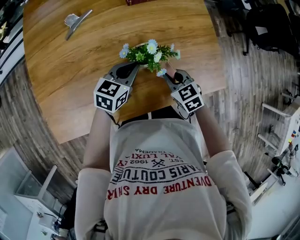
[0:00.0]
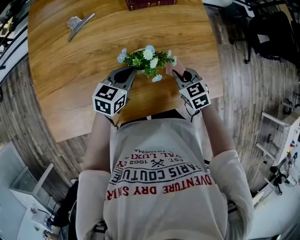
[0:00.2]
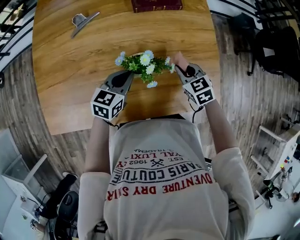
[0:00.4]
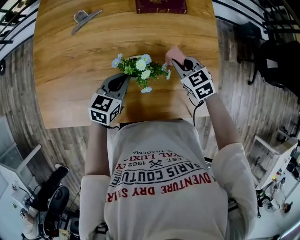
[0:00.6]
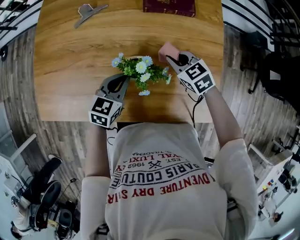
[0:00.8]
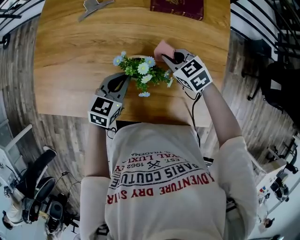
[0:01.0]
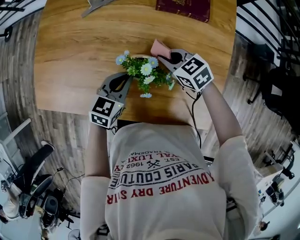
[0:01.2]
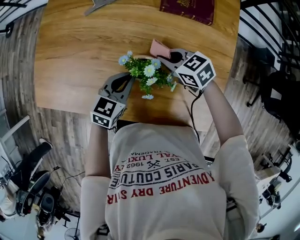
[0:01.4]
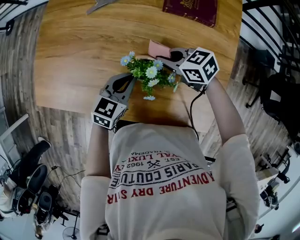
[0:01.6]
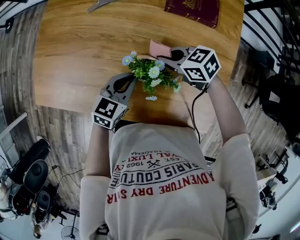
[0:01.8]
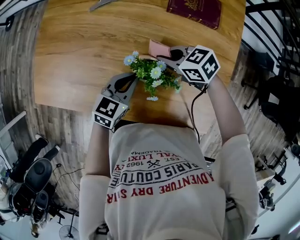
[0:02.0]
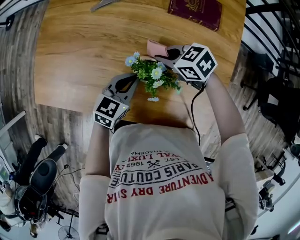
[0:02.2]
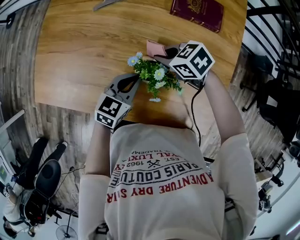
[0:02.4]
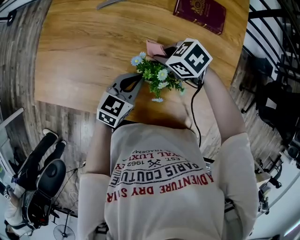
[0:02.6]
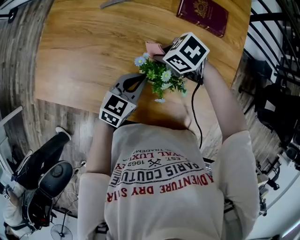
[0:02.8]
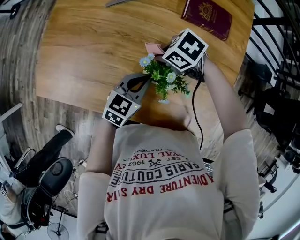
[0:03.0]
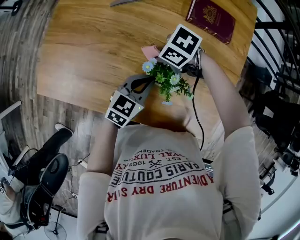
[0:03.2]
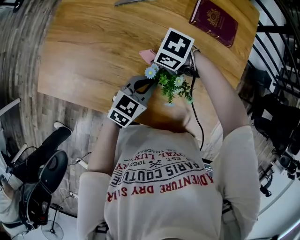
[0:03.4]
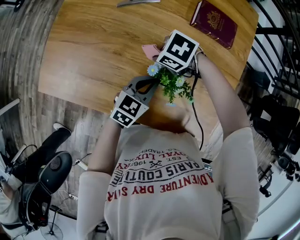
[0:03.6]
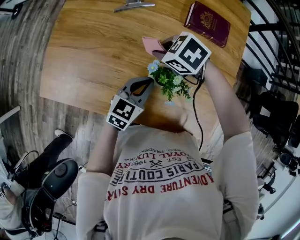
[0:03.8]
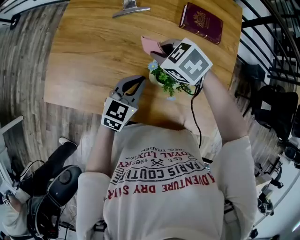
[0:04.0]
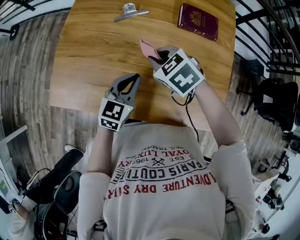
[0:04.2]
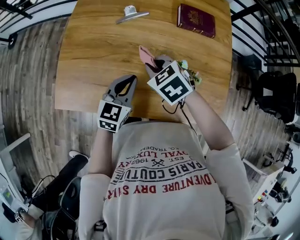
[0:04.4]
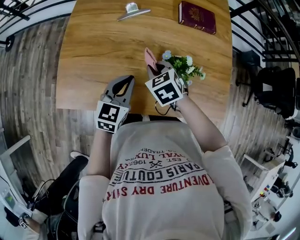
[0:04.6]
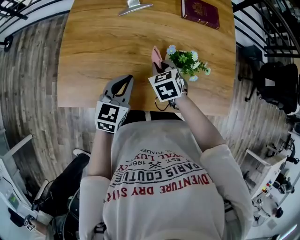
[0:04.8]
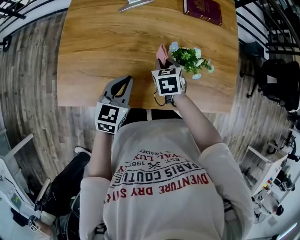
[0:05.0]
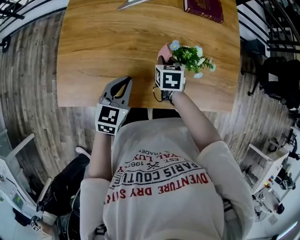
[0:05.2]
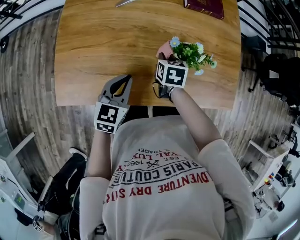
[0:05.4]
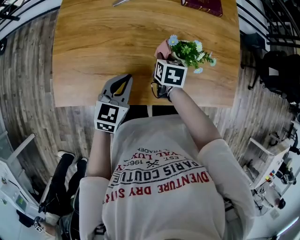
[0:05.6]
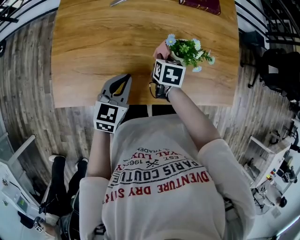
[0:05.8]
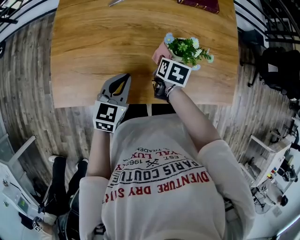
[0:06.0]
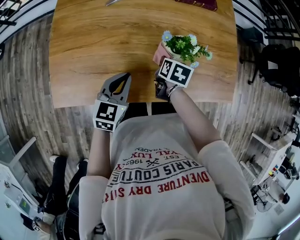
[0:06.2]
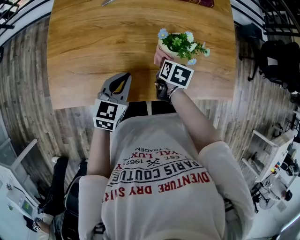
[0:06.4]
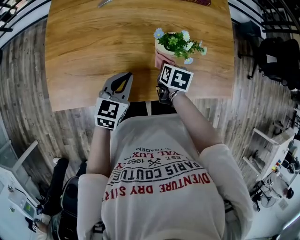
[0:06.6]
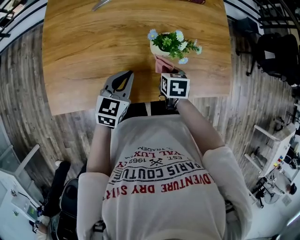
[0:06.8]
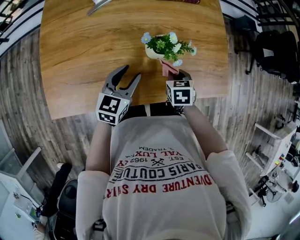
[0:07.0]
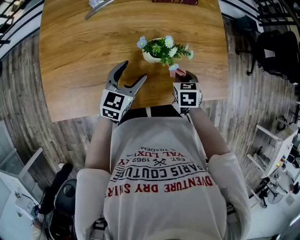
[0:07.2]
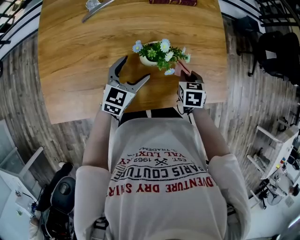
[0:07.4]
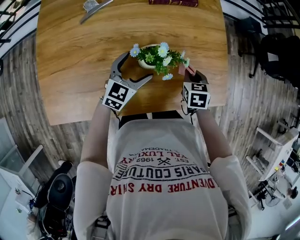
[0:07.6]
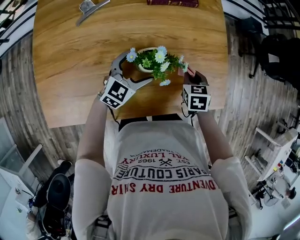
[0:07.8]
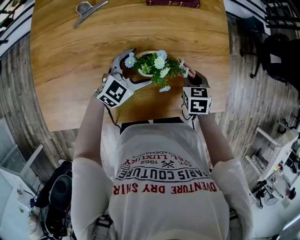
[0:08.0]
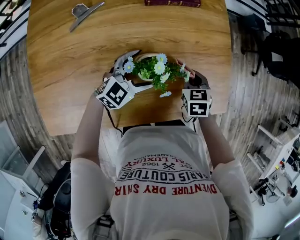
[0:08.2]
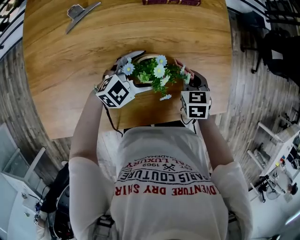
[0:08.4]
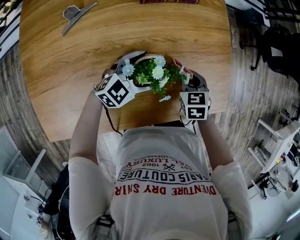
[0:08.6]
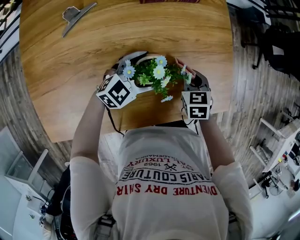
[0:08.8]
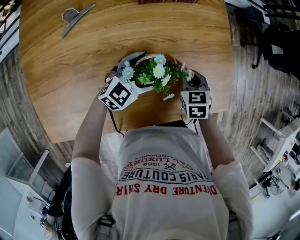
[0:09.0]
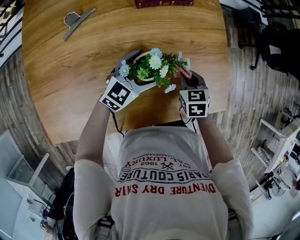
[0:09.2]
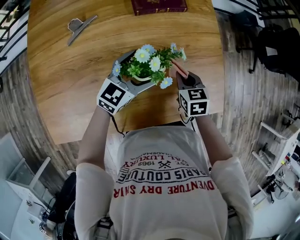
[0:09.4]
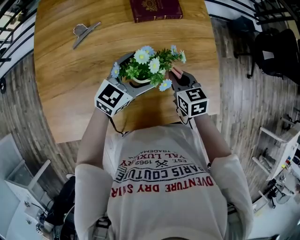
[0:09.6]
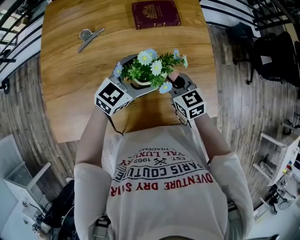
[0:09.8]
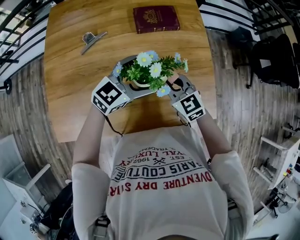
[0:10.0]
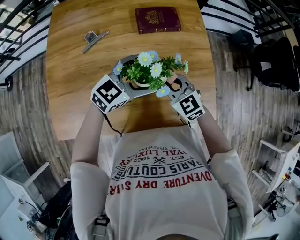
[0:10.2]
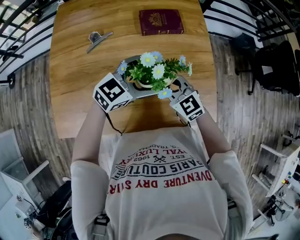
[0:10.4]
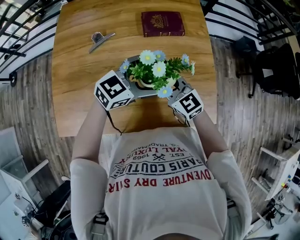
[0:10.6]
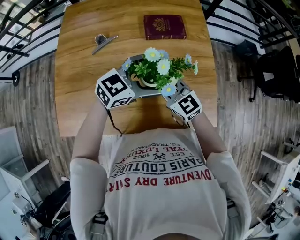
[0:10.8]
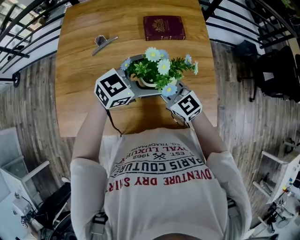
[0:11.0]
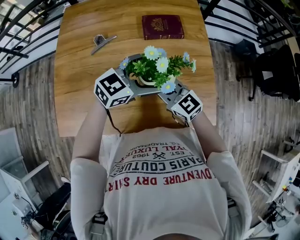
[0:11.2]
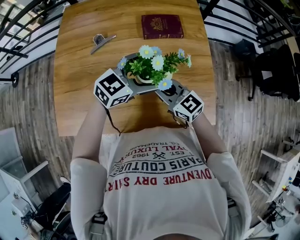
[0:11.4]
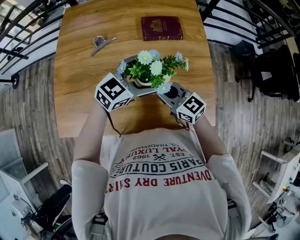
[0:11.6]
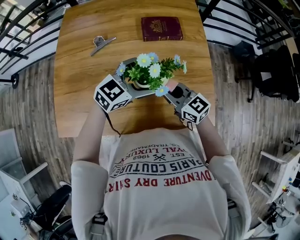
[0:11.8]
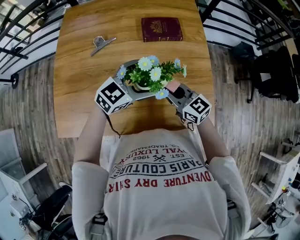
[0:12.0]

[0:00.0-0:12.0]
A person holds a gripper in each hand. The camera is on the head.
0:00.0 to 0:01.6: The right gripper shifts by about 15 cm, and rotates about 50 degrees; the left gripper rotates some 30 degrees.
0:01.6 to 0:03.0: The right gripper ends up roughly 5 cm from where it was, and turns by approximately 30 degrees.
0:03.0 to 0:04.4: The right gripper changes place by approximately 15 cm, and swivels approximately 40 degrees, while the left gripper moves some 15 cm.
0:04.4 to 0:06.0: The right gripper goes approximately 15 cm downward and to the right, and rolls clockwise, seen from behind, by approximately 60 degrees. The left gripper goes approximately 10 cm backward and downward.
0:06.0 to 0:07.6: The left gripper heads forward and to the right, covering approximately 20 cm, and opens its fingers, while the right gripper heads to the right, covering about 20 cm, and swivels about 30 degrees.
0:07.6 to 0:09.0: The left gripper goes about 5 cm forward, and swivels approximately 30 degrees.
0:09.0 to 0:10.4: The right gripper heads upward and to the left, covering about 20 cm, and tilts its fingers about 30 degrees upward. The left gripper is displaced upward by approximately 20 cm.
0:10.4 to 0:12.0: The right gripper turns by some 20 degrees.

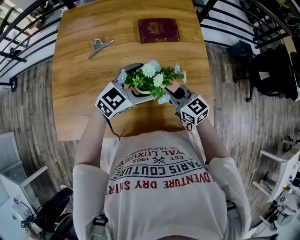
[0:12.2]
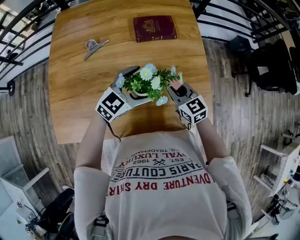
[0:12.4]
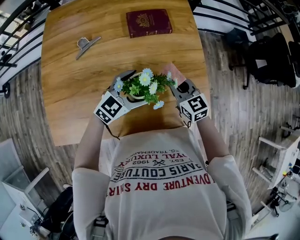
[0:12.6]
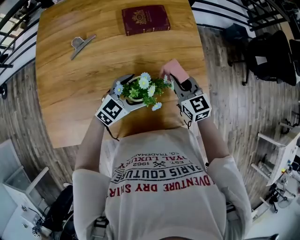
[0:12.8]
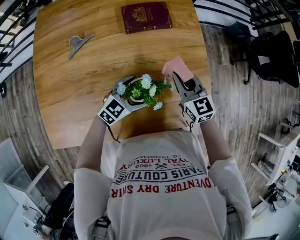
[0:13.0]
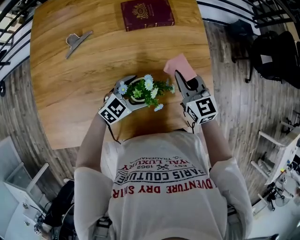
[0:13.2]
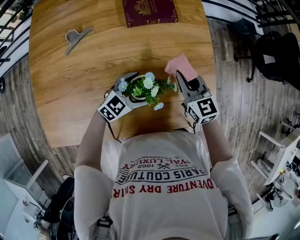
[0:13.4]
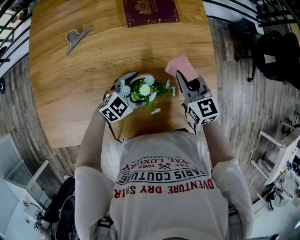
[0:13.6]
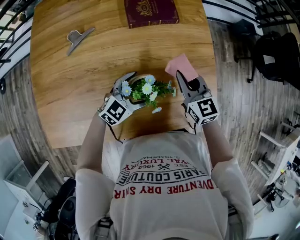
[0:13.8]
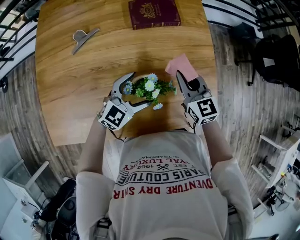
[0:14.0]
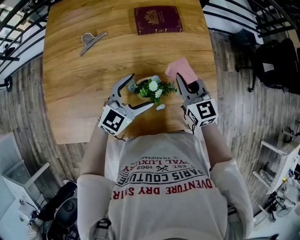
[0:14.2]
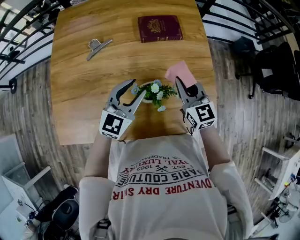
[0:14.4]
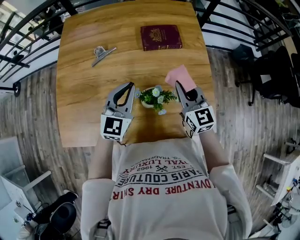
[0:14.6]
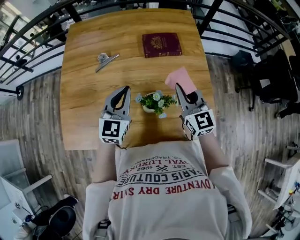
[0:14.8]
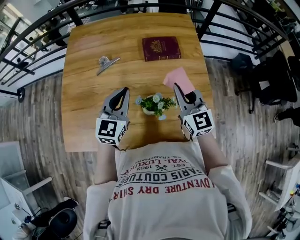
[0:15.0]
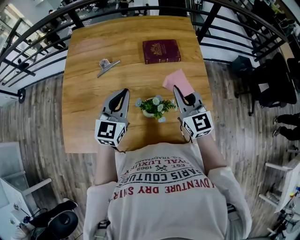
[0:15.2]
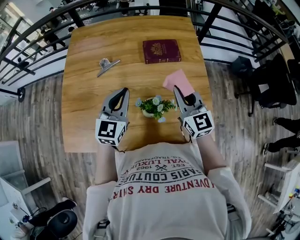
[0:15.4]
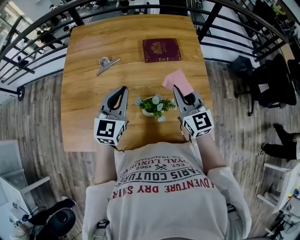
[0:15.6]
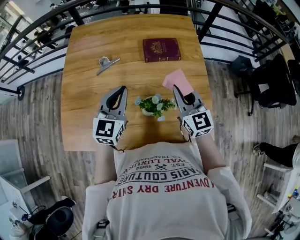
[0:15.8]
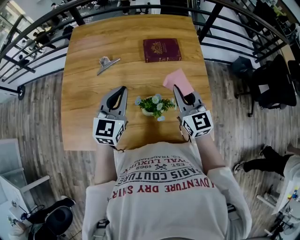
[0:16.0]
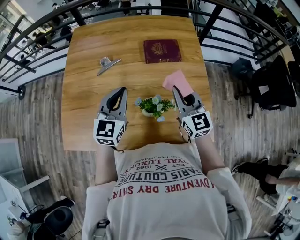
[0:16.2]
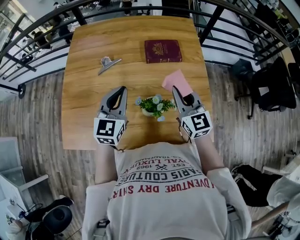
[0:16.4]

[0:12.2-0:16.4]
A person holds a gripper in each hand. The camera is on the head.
0:12.2 to 0:13.6: The left gripper travels downward by approximately 20 cm. Meanwhile the right gripper goes approximately 10 cm forward and to the right, and swivels approximately 20 degrees.
0:13.6 to 0:15.0: The right gripper is displaced upward by about 15 cm; the left gripper heads upward and to the left, covering some 25 cm, swivels about 50 degrees, and closes its fingers.
0:15.0 to 0:16.4: The grippers move only a little.

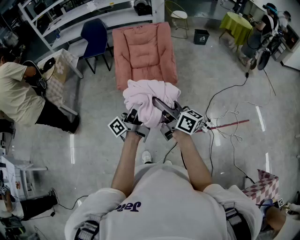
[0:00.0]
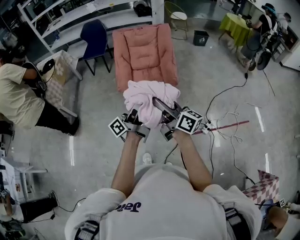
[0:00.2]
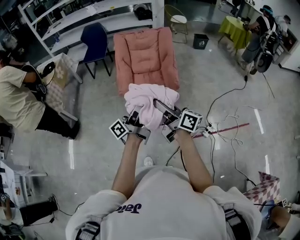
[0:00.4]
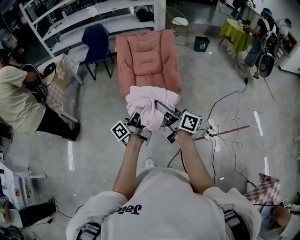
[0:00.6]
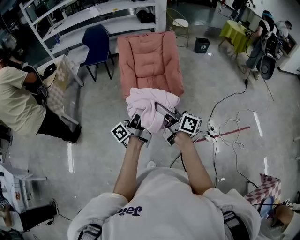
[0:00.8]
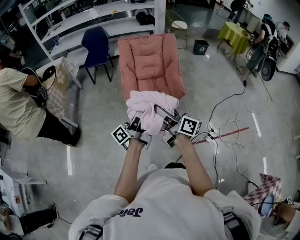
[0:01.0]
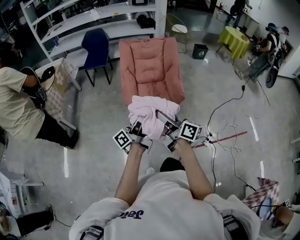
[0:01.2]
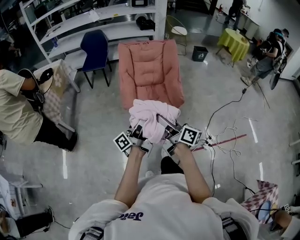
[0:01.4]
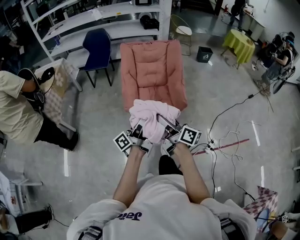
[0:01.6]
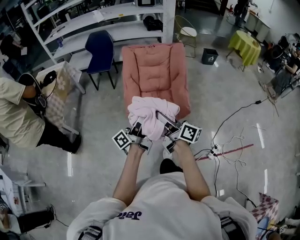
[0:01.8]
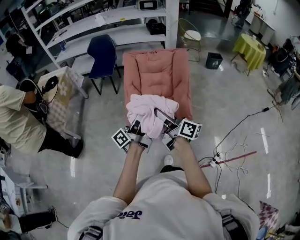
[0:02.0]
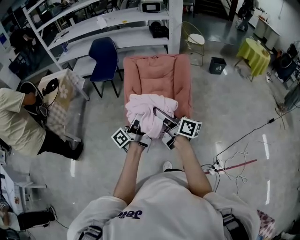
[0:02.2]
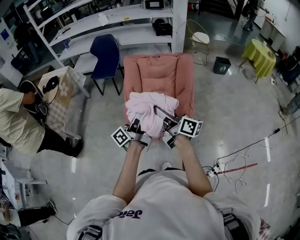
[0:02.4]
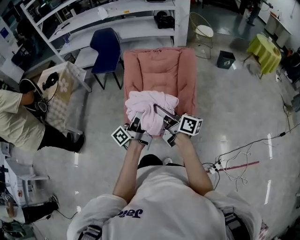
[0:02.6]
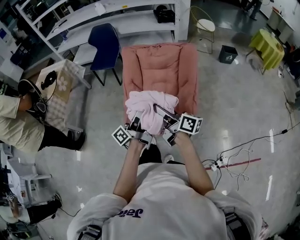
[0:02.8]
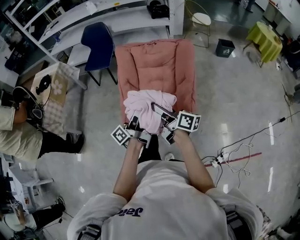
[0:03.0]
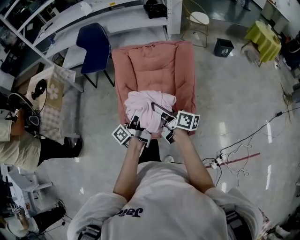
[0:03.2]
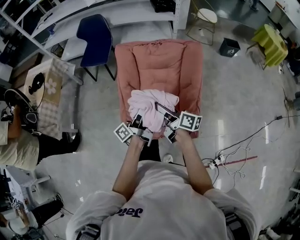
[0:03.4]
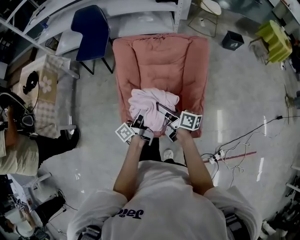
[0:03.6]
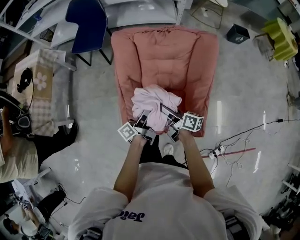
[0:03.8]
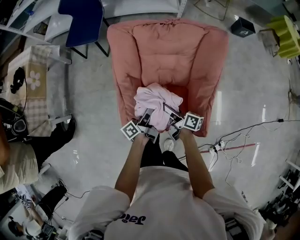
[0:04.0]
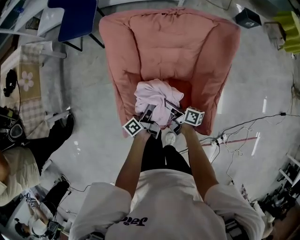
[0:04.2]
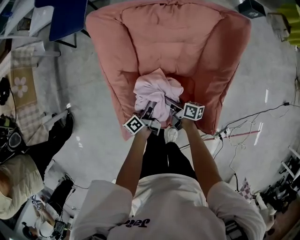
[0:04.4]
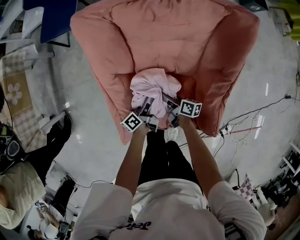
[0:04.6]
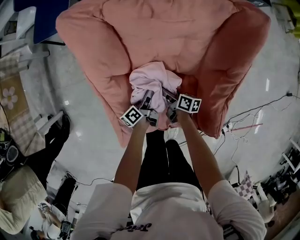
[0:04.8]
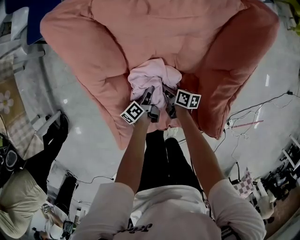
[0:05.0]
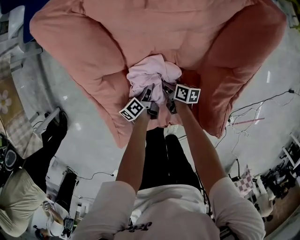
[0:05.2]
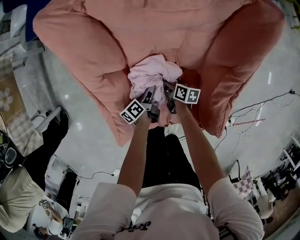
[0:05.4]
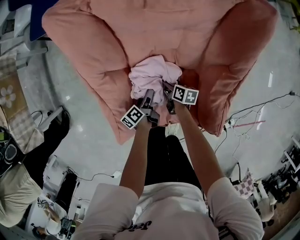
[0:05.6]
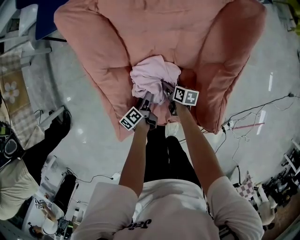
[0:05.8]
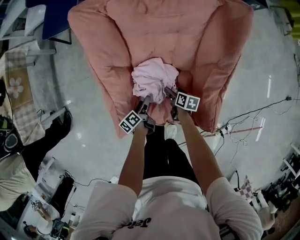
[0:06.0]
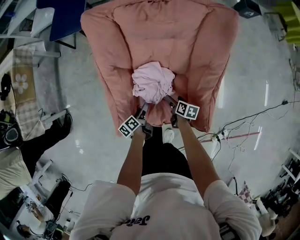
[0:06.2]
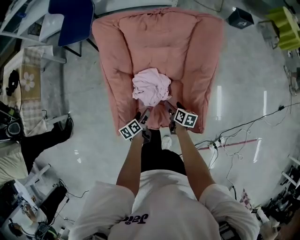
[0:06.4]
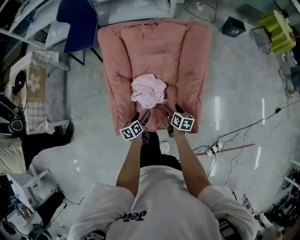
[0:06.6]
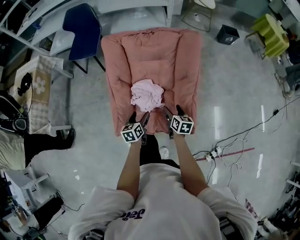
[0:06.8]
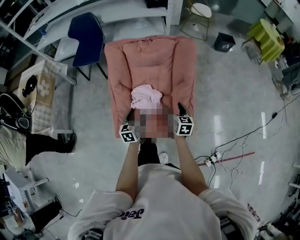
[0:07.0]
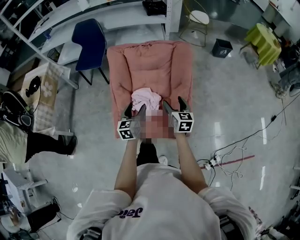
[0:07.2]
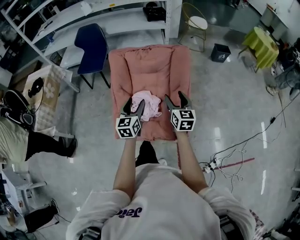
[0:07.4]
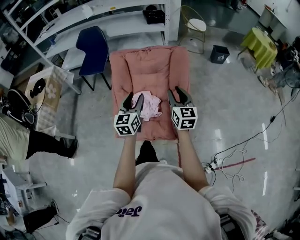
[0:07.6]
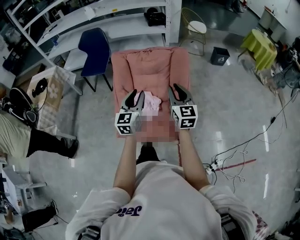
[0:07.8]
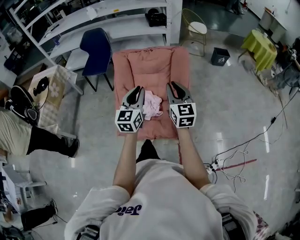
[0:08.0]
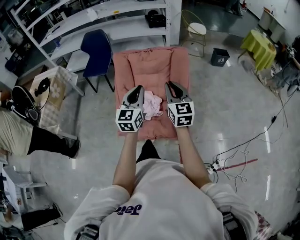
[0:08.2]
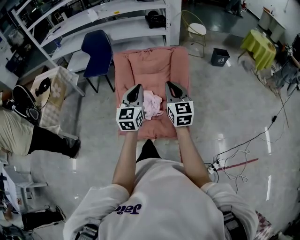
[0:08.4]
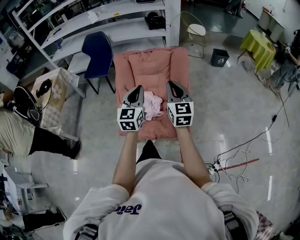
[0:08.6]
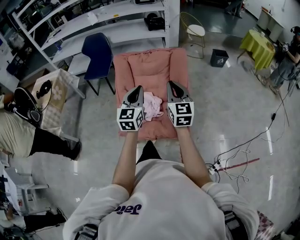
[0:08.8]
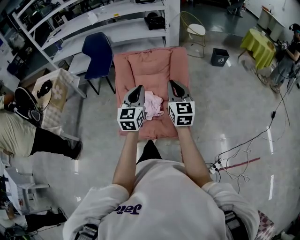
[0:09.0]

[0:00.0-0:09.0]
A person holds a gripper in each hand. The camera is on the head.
0:00.0 to 0:01.6: The two grippers go roughly 20 cm forward, to the left and downward.
0:01.6 to 0:03.0: The two grippers go about 30 cm forward.
0:03.0 to 0:04.4: The two grippers go some 50 cm downward and forward. The right gripper rotates about 30 degrees. The left gripper tilts its fingers some 30 degrees downward.
0:04.4 to 0:06.0: The left gripper travels downward and backward by about 15 cm, and changes its angle by approximately 30 degrees. The right gripper heads downward and to the right, covering about 15 cm, and tilts its fingers roughly 30 degrees downward.
0:06.0 to 0:07.6: The two grippers go approximately 50 cm upward. The left gripper rotates around the line of its fingers by about 70 degrees, clockwise from behind, and closes its fingers. The right gripper tips its fingers upward by about 40 degrees, and closes up.
0:07.6 to 0:09.0: Both grippers travel together upward and backward, approximately 10 cm. The left gripper closes. Meanwhile the right gripper closes up.